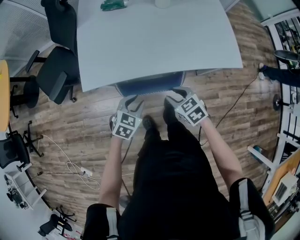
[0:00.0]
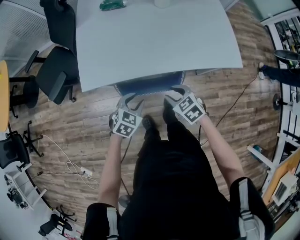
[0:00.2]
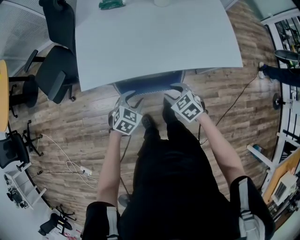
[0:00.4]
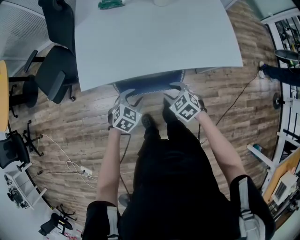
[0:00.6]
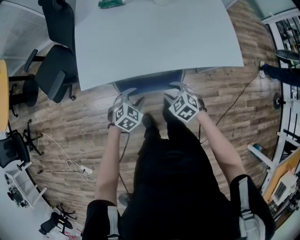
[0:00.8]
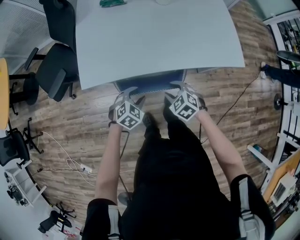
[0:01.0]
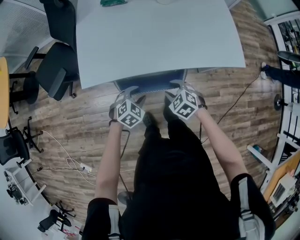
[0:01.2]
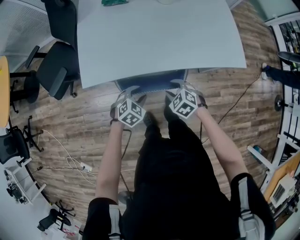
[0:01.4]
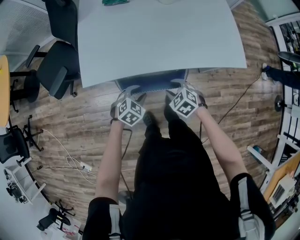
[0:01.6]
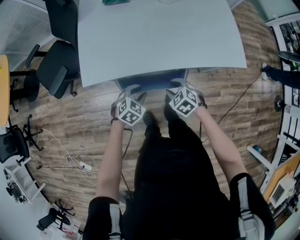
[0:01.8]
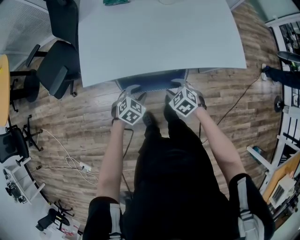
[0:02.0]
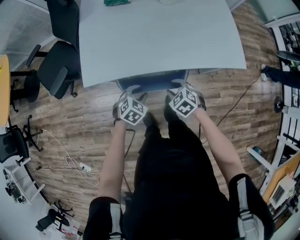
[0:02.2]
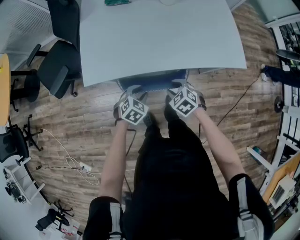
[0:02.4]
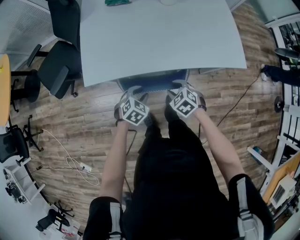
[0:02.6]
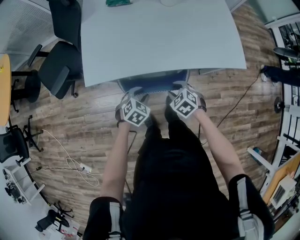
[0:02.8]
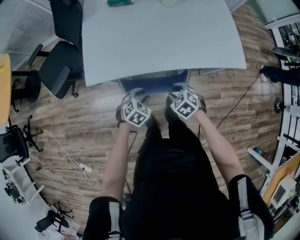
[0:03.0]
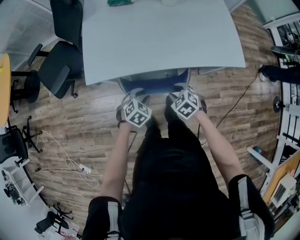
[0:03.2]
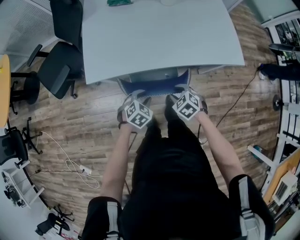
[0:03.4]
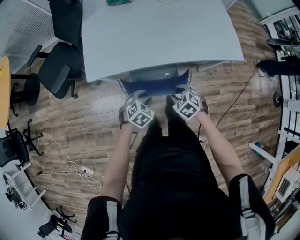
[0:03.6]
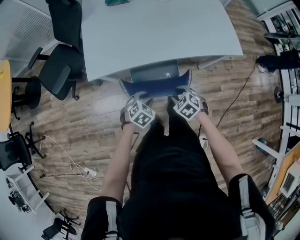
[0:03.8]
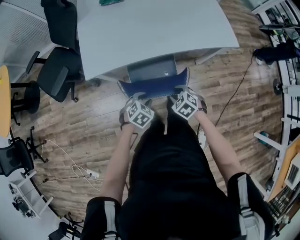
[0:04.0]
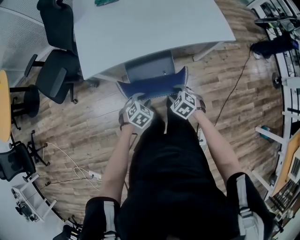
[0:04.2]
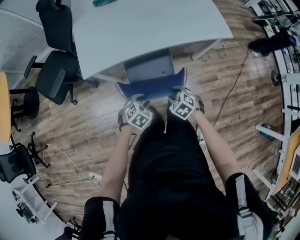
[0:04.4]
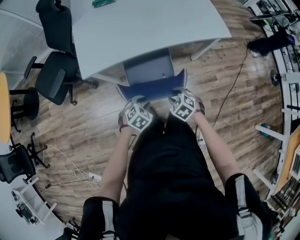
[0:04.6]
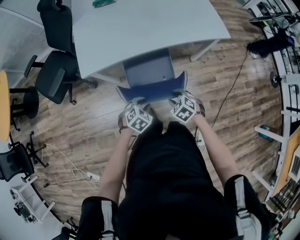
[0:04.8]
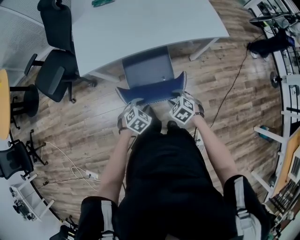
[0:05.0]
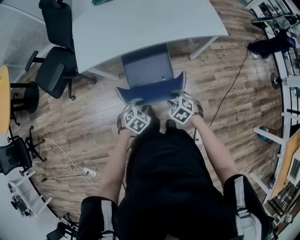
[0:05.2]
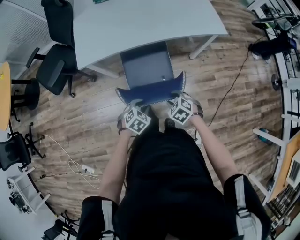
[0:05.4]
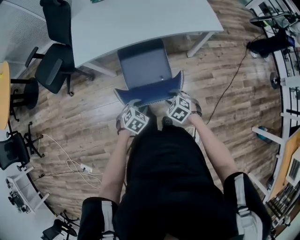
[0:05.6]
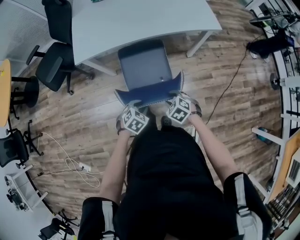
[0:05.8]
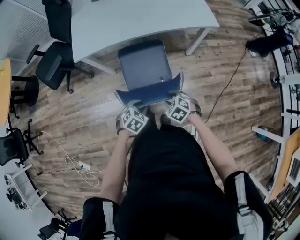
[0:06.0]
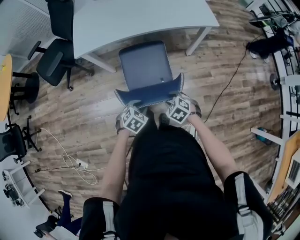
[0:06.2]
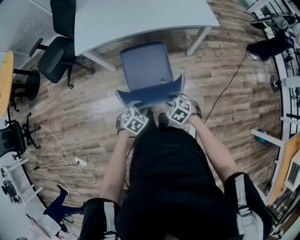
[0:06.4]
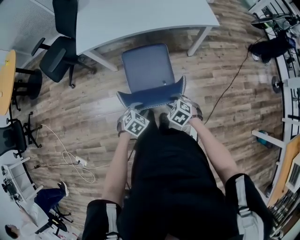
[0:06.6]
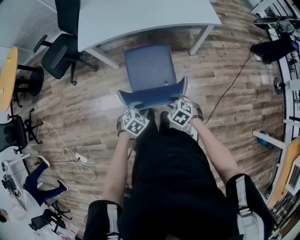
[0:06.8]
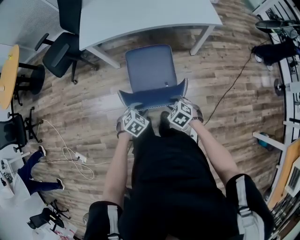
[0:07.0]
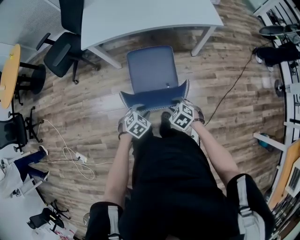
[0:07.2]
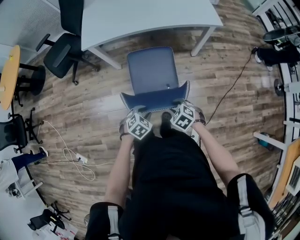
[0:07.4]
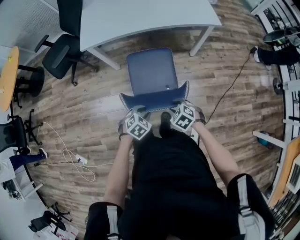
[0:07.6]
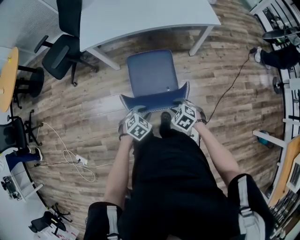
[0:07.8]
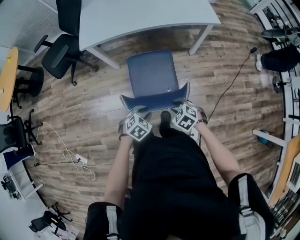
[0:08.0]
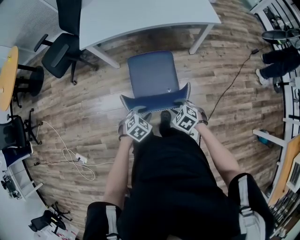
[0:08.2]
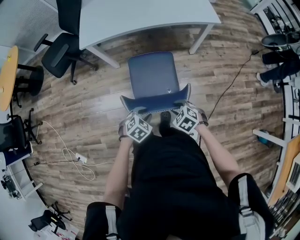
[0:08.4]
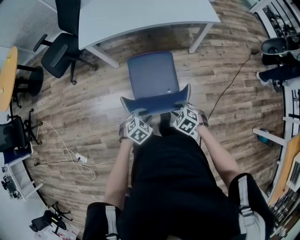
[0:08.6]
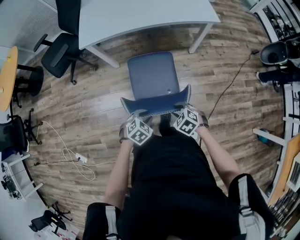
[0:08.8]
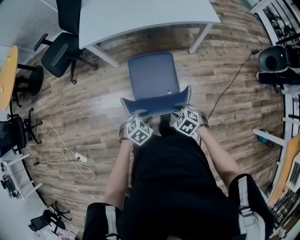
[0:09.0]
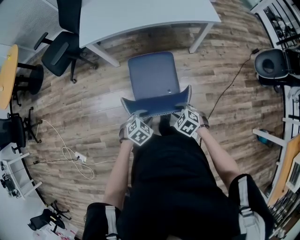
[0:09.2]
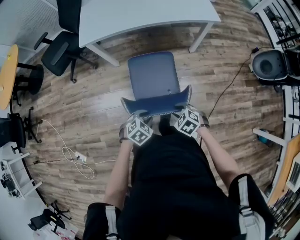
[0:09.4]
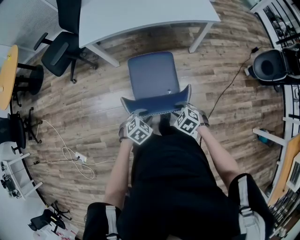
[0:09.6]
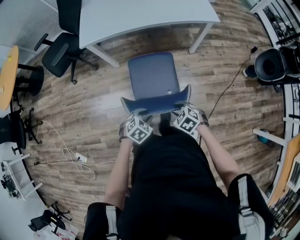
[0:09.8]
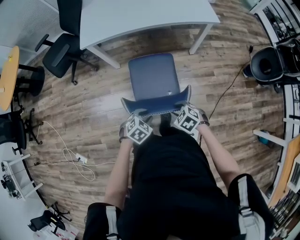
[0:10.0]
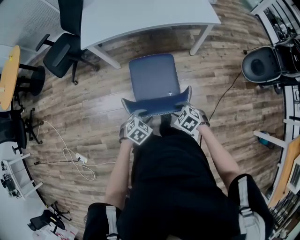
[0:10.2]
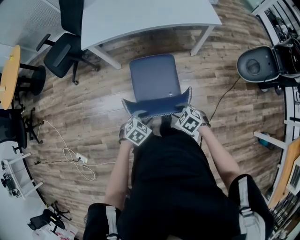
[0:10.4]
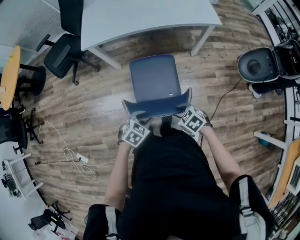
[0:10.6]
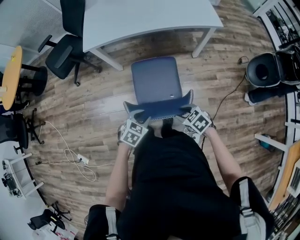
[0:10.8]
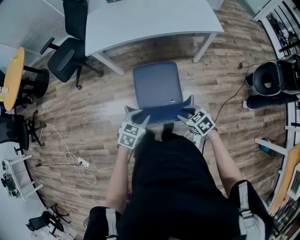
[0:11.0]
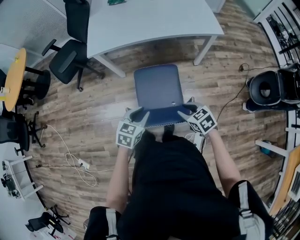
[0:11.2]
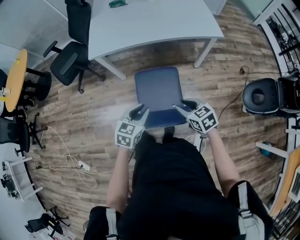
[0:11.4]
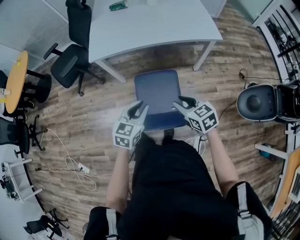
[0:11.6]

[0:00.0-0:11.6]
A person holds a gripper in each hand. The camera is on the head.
0.0 to 1.4 s: Both grippers travel together downward, roughly 5 cm. The right gripper changes its angle by some 20 degrees.
1.4 to 2.8 s: The grippers move only a little.
2.8 to 4.4 s: The two grippers go roughly 15 cm backward.
4.4 to 5.8 s: Both grippers move backward and to the right, approximately 15 cm.
5.8 to 7.2 s: Both grippers travel together backward, approximately 10 cm.
7.2 to 8.8 s: The grippers make only small movements.
8.8 to 10.2 s: Neither gripper changes place.
10.2 to 11.6 s: Both grippers move upward, about 15 cm. The left gripper tips its fingers upward by approximately 30 degrees, while the right gripper changes its angle by roughly 30 degrees.

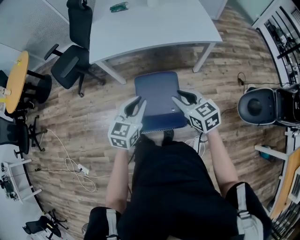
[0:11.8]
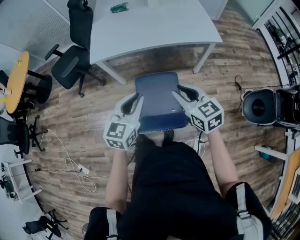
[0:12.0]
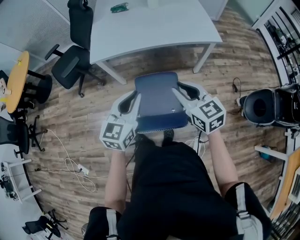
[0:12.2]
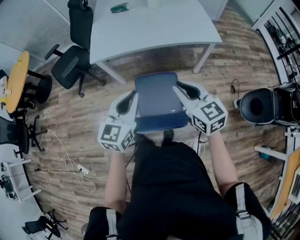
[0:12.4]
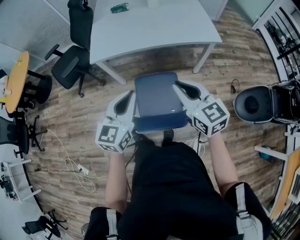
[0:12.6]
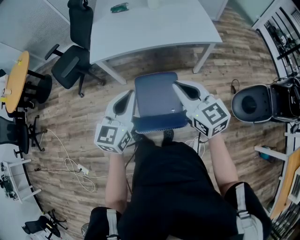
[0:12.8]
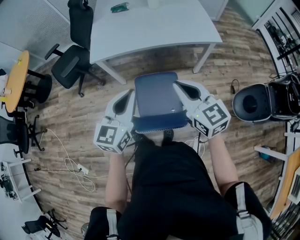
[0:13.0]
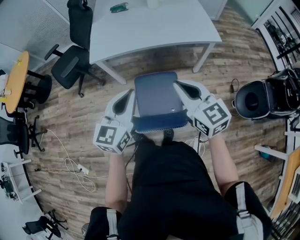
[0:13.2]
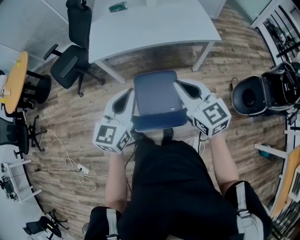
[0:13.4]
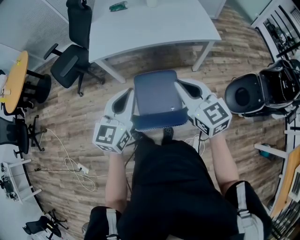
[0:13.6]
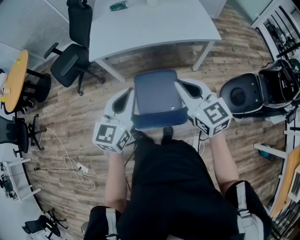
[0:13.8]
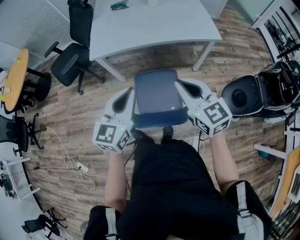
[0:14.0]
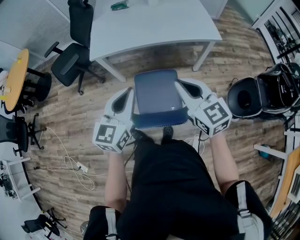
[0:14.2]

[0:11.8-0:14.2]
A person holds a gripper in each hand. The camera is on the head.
11.8 to 13.0 s: Both grippers travel together upward, some 10 cm. The right gripper closes up.
13.0 to 14.2 s: Both grippers stay about where they are.

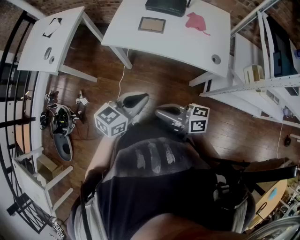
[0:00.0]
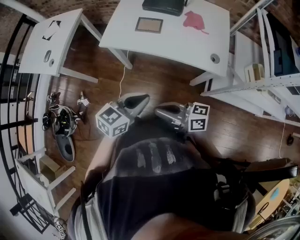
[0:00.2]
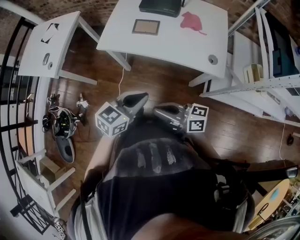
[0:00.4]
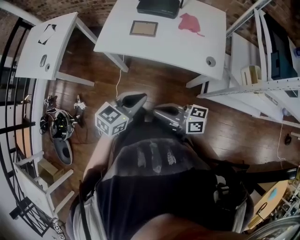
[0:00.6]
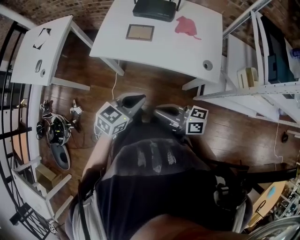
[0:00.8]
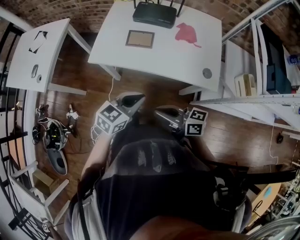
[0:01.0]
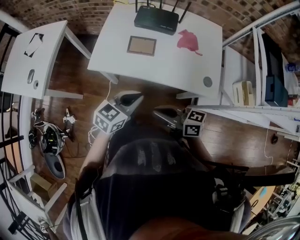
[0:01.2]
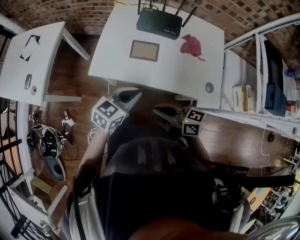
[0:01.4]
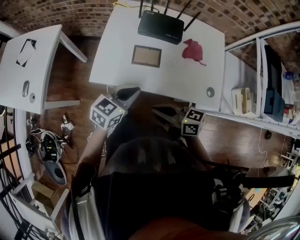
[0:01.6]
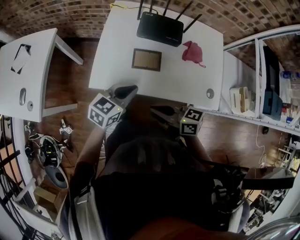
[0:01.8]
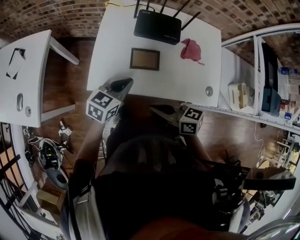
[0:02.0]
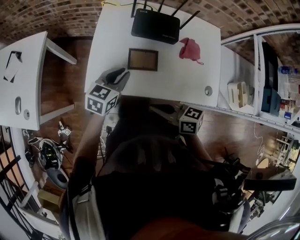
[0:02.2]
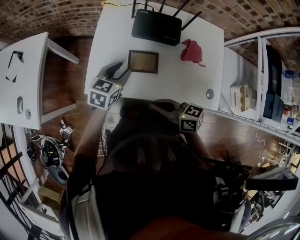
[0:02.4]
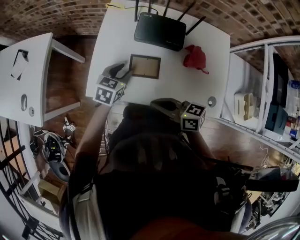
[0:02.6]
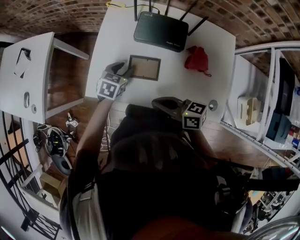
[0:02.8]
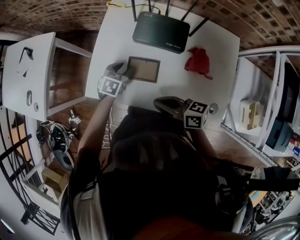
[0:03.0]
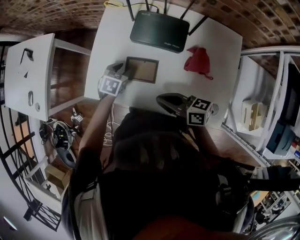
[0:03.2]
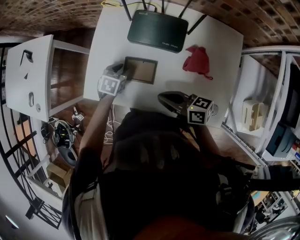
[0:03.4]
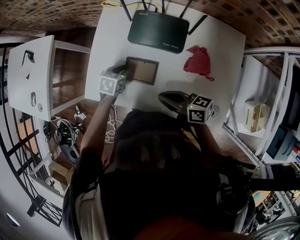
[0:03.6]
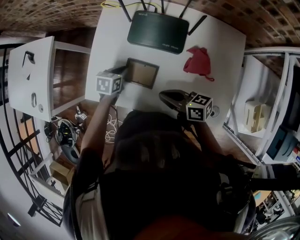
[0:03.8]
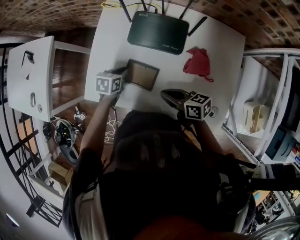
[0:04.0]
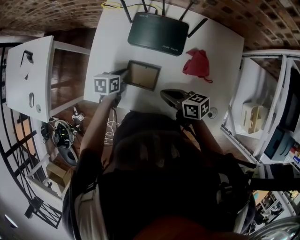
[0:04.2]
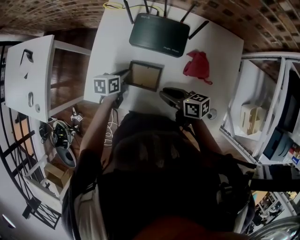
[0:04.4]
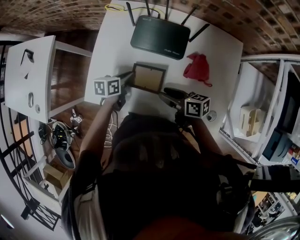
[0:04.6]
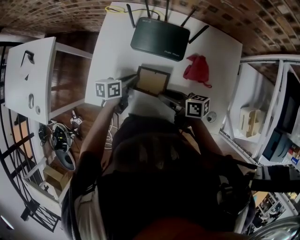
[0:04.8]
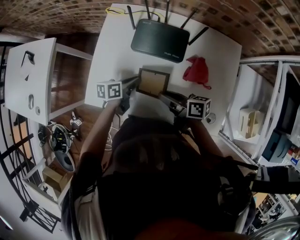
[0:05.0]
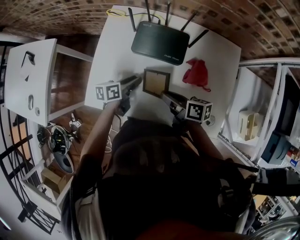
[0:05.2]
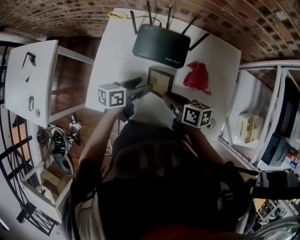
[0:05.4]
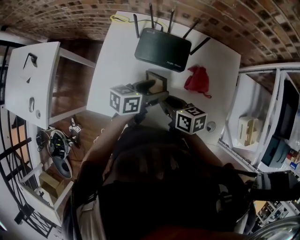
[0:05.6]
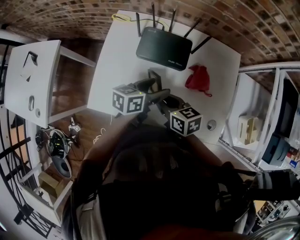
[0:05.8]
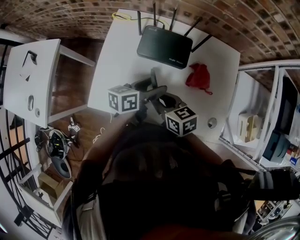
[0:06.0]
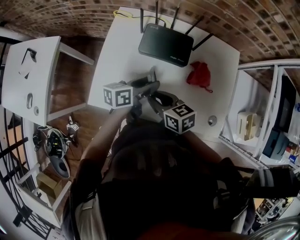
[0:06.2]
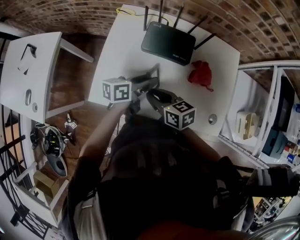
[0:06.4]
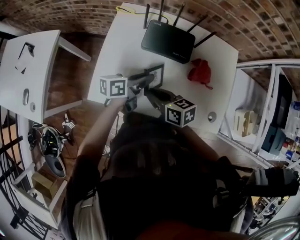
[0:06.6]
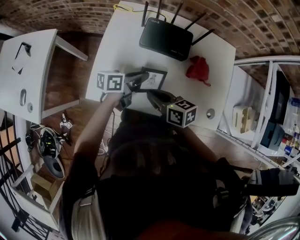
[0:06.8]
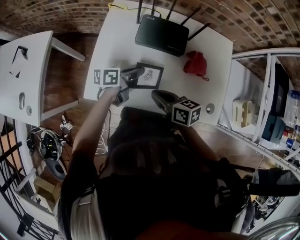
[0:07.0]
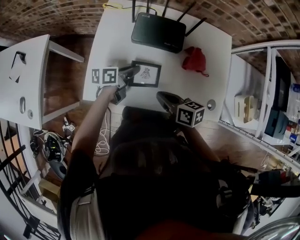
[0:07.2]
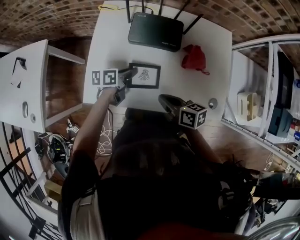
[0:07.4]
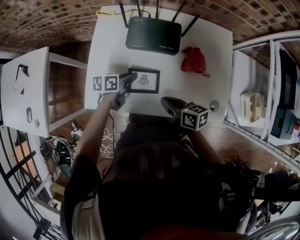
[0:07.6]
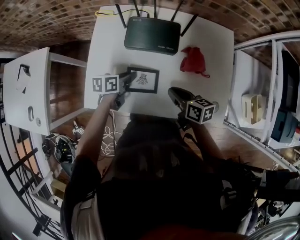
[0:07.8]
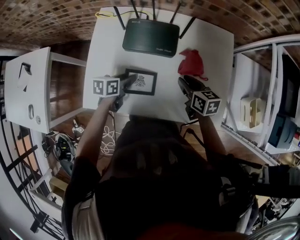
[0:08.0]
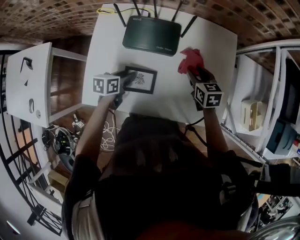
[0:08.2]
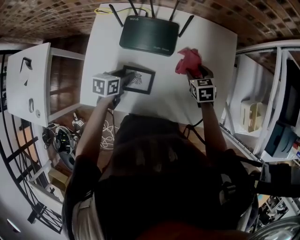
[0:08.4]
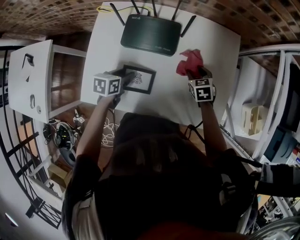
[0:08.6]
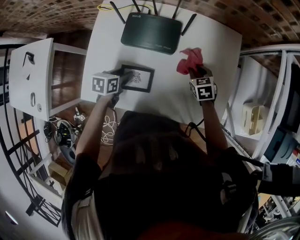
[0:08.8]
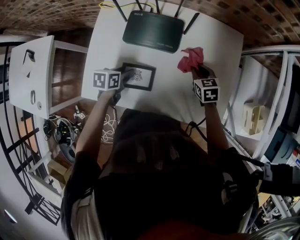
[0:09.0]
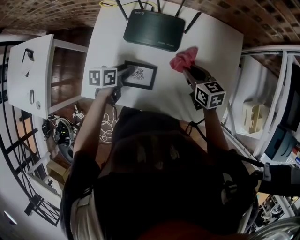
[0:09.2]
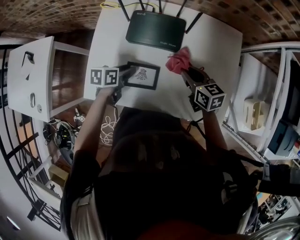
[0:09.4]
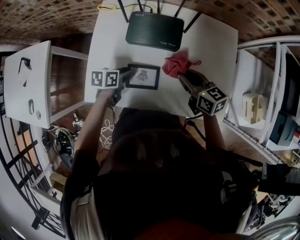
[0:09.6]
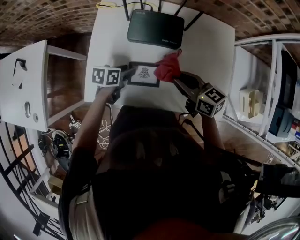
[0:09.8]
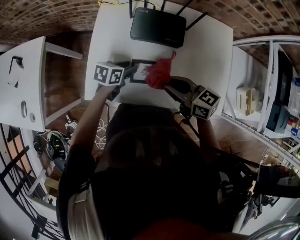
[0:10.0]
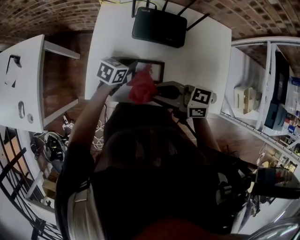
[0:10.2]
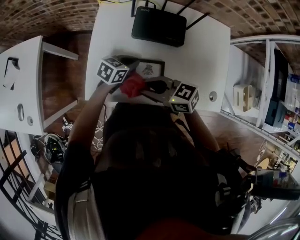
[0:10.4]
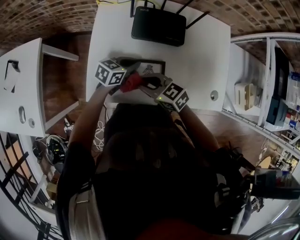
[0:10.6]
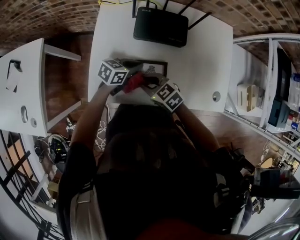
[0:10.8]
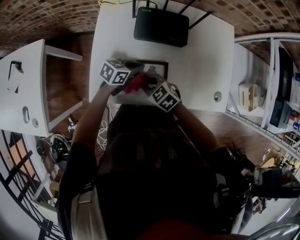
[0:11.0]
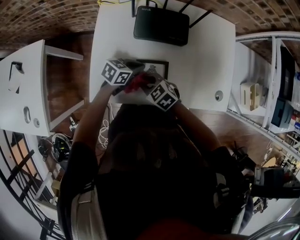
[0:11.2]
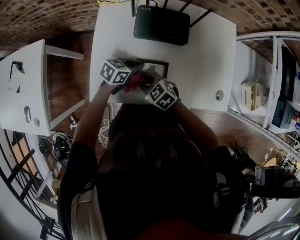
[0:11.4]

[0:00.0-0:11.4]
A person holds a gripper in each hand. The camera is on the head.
0.0 to 1.4 s: The left gripper ends up about 20 cm from where it was. Meanwhile the right gripper moves about 20 cm.
1.4 to 2.8 s: The right gripper goes roughly 15 cm forward. The left gripper travels forward and downward by approximately 30 cm, changes its angle by roughly 30 degrees, and opens its fingers.
2.8 to 4.2 s: The right gripper heads to the right, downward and forward, covering about 15 cm, while the left gripper is displaced downward by about 5 cm, and turns by roughly 30 degrees.
4.2 to 5.6 s: The right gripper moves roughly 5 cm, and opens, then closes again. The left gripper moves upward and to the right, approximately 20 cm, rotates some 30 degrees, and opens up.
5.6 to 7.2 s: The right gripper shifts roughly 5 cm backward, and travels to the left and back again, approximately 10 cm each way, while the left gripper is displaced to the left and downward by approximately 15 cm, and closes its fingers.
7.2 to 8.6 s: The right gripper is displaced forward, to the right and downward by some 30 cm, rotates some 50 degrees, and opens. The left gripper changes its angle by approximately 30 degrees, and opens its fingers.
8.6 to 10.0 s: The right gripper is displaced to the left, upward and backward by roughly 30 cm, tips its fingers upward by roughly 40 degrees, and closes its fingers.
10.0 to 11.4 s: The right gripper shifts approximately 15 cm downward, and swivels about 40 degrees; the left gripper changes its angle by roughly 20 degrees, and closes its fingers.
